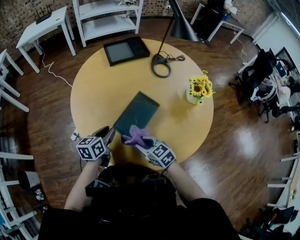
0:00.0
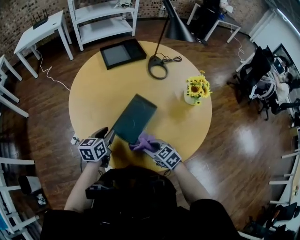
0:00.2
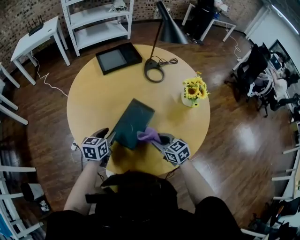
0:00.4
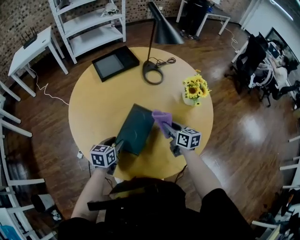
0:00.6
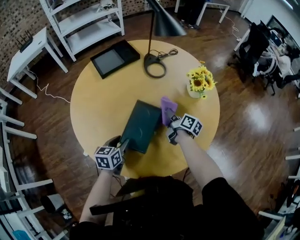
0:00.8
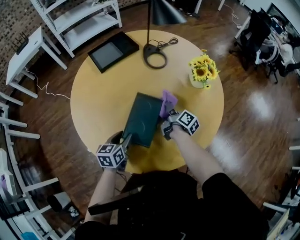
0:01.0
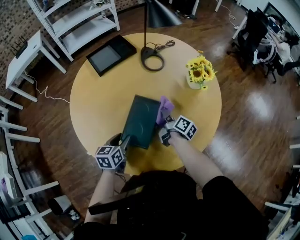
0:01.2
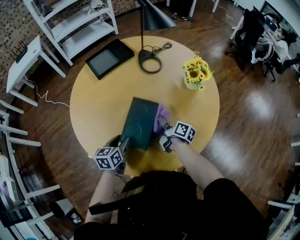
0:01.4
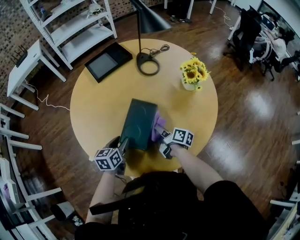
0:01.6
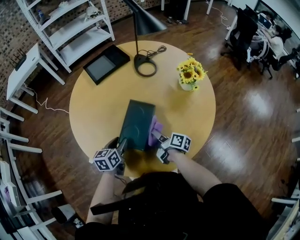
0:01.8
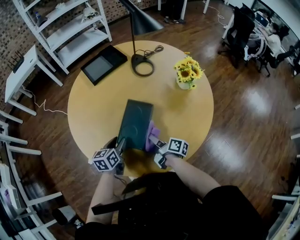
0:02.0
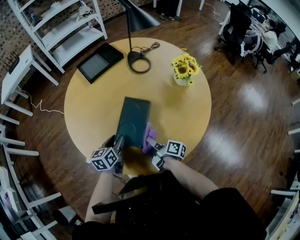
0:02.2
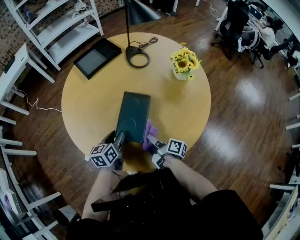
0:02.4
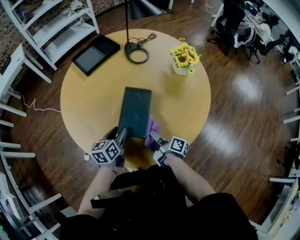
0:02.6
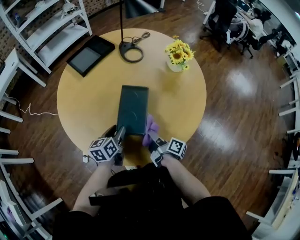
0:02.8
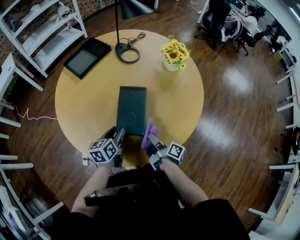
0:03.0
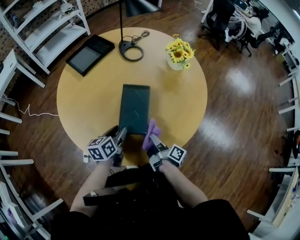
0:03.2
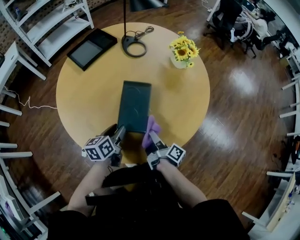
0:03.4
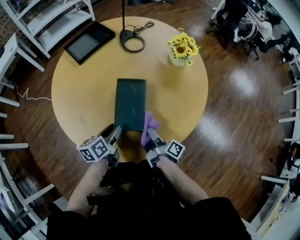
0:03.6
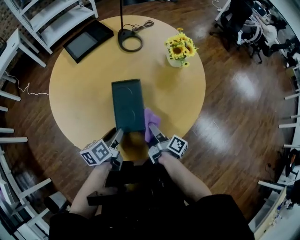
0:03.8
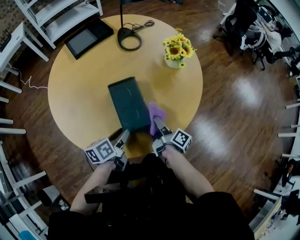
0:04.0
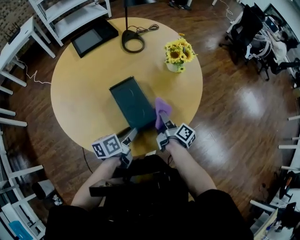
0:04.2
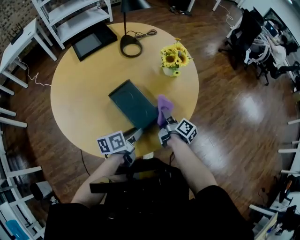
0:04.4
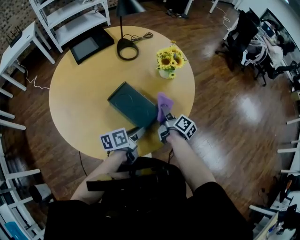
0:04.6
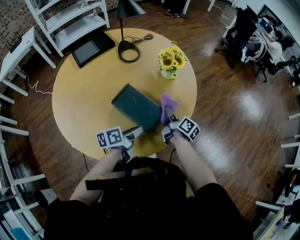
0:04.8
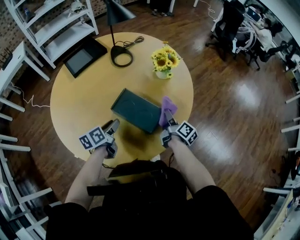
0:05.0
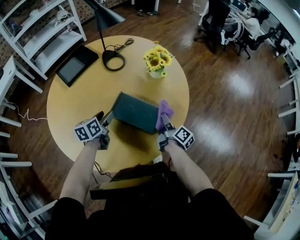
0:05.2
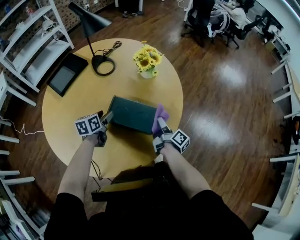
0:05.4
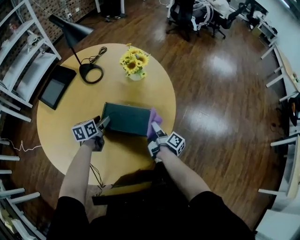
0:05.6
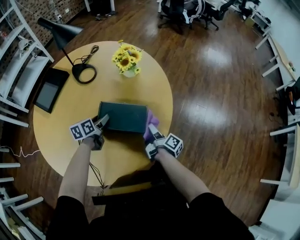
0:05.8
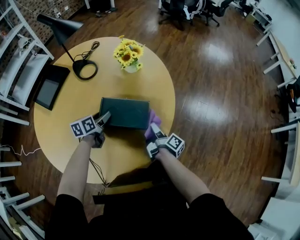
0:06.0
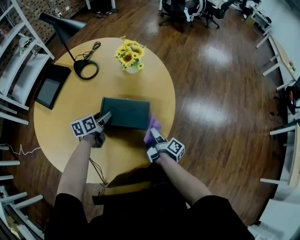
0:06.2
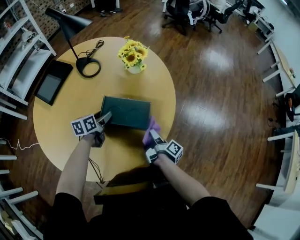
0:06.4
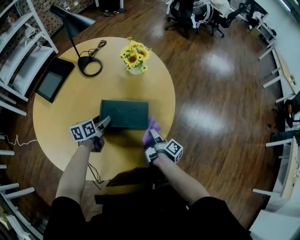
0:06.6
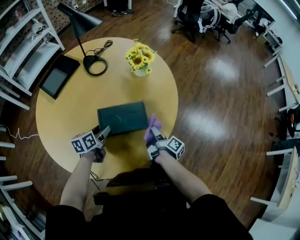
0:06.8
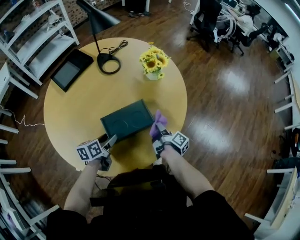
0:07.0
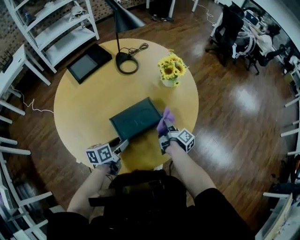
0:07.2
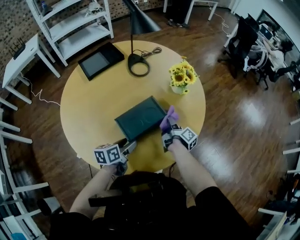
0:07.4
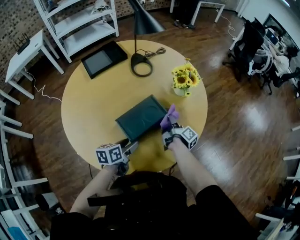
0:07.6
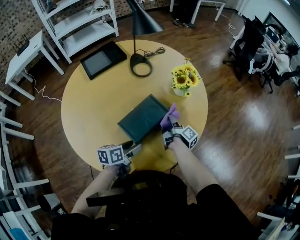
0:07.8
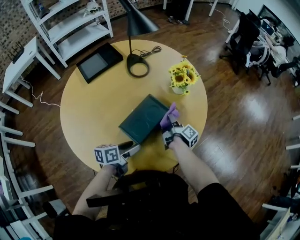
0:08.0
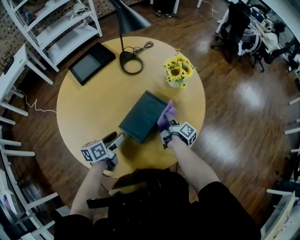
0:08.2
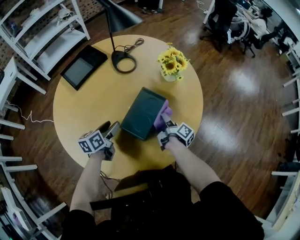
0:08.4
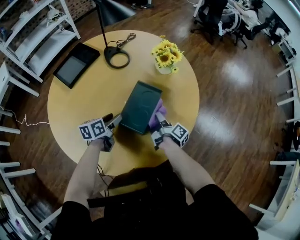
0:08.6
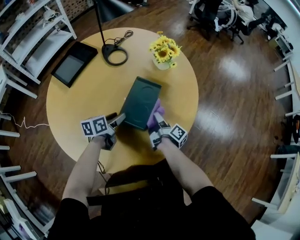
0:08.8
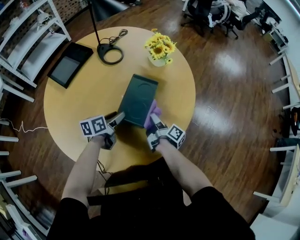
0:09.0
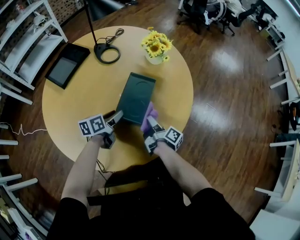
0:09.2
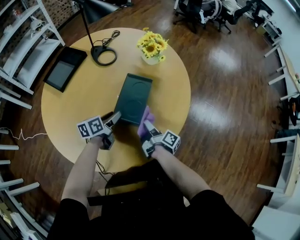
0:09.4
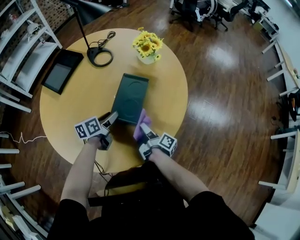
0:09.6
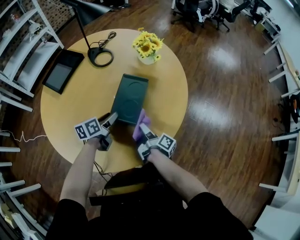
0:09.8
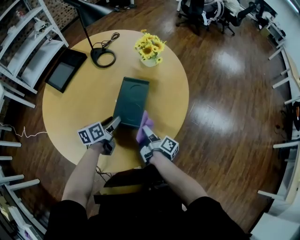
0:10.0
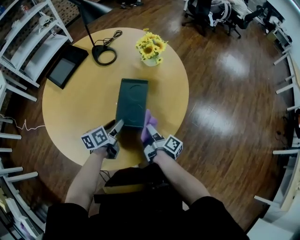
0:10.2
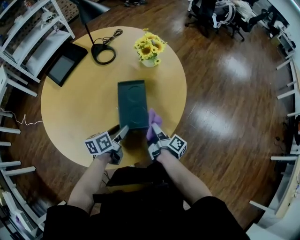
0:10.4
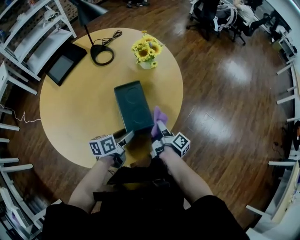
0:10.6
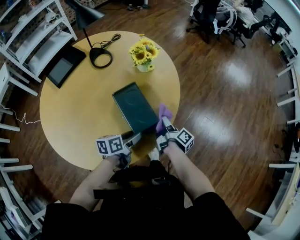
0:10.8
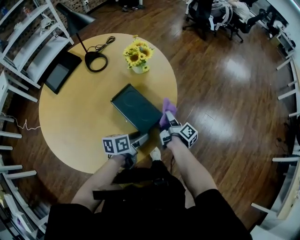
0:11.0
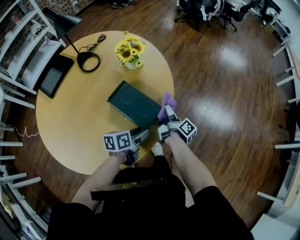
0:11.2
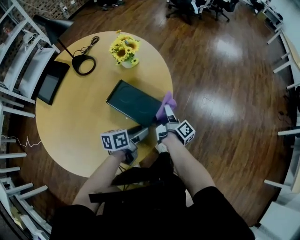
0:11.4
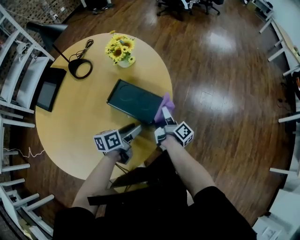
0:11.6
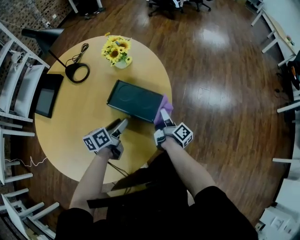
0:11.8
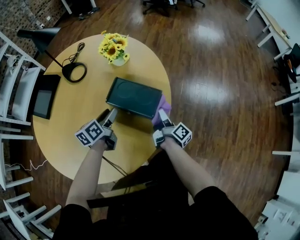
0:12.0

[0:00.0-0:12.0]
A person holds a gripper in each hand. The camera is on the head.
0:00.0 to 0:01.6: The left gripper changes place by about 5 cm, while the right gripper rolls clockwise, seen from behind, by about 70 degrees.
0:01.6 to 0:03.0: The right gripper is displaced backward by some 15 cm, and changes its angle by approximately 30 degrees.
0:03.0 to 0:04.4: The left gripper heads to the right, covering some 20 cm, and swivels some 30 degrees. Meanwhile the right gripper is displaced to the right and forward by approximately 25 cm, and swivels roughly 20 degrees.
0:04.4 to 0:06.0: The left gripper changes place by about 20 cm, turns by about 30 degrees, and opens its fingers; the right gripper moves approximately 10 cm, and swivels about 50 degrees.
0:06.0 to 0:07.6: The left gripper goes about 15 cm backward, and changes its angle by about 20 degrees, while the right gripper is displaced forward by some 15 cm, and turns by some 30 degrees.
0:07.6 to 0:09.0: The left gripper heads forward and to the left, covering roughly 10 cm, and changes its angle by some 20 degrees, while the right gripper travels backward and to the left by roughly 15 cm.
0:09.0 to 0:10.4: The right gripper shifts approximately 10 cm to the right. The left gripper moves to the right and backward, approximately 10 cm.
0:10.4 to 0:12.0: The right gripper swivels approximately 30 degrees.

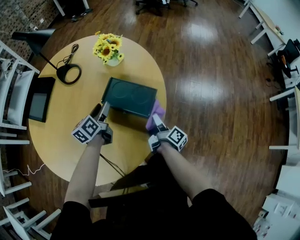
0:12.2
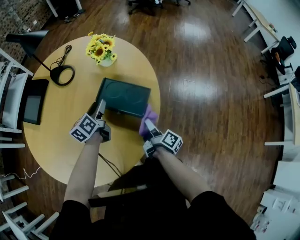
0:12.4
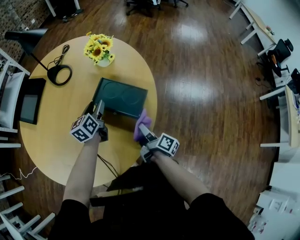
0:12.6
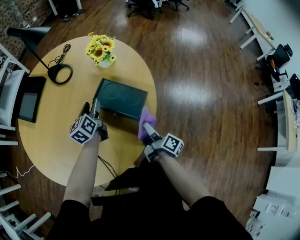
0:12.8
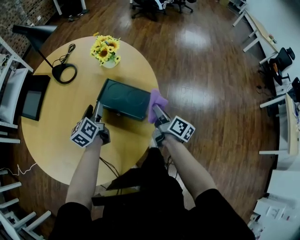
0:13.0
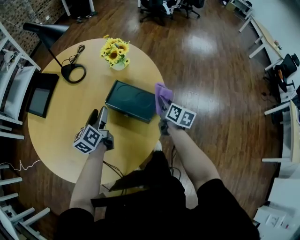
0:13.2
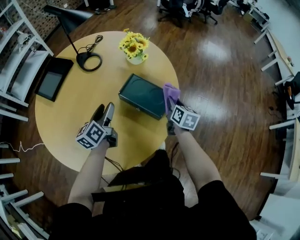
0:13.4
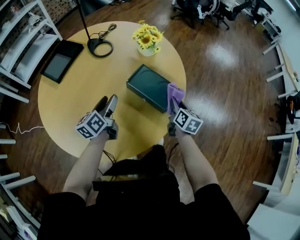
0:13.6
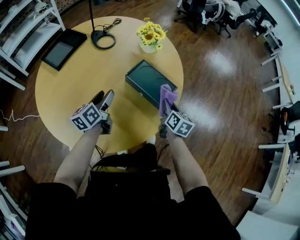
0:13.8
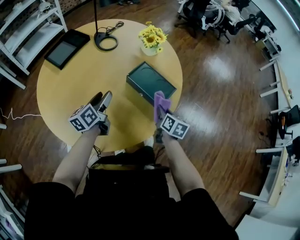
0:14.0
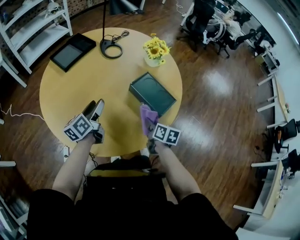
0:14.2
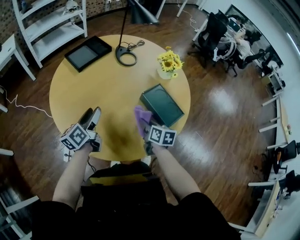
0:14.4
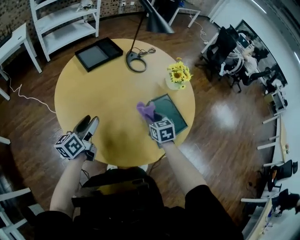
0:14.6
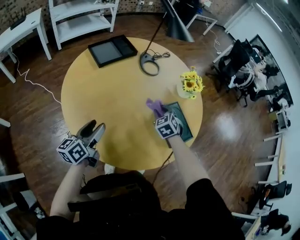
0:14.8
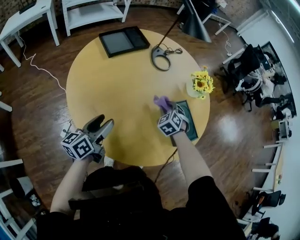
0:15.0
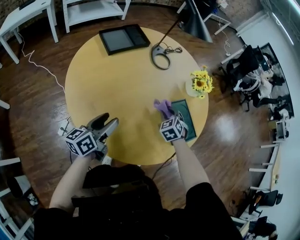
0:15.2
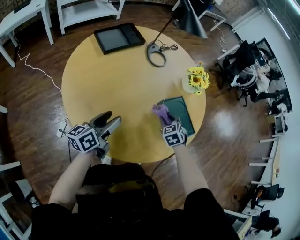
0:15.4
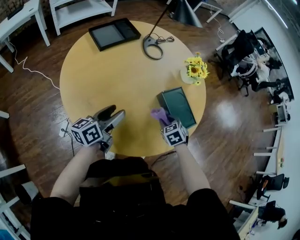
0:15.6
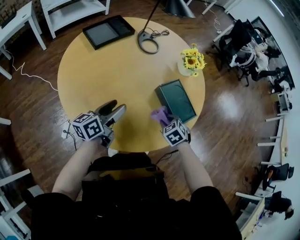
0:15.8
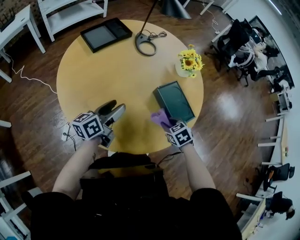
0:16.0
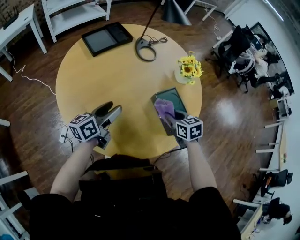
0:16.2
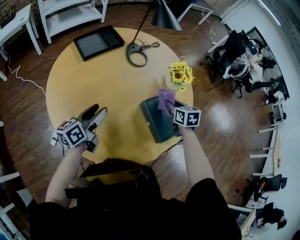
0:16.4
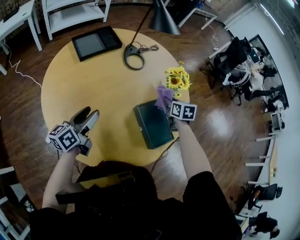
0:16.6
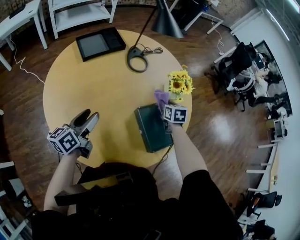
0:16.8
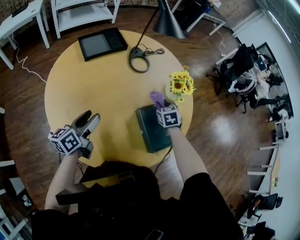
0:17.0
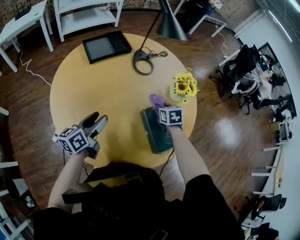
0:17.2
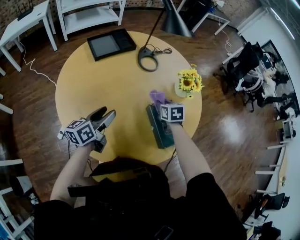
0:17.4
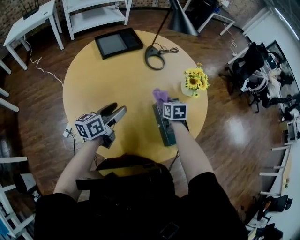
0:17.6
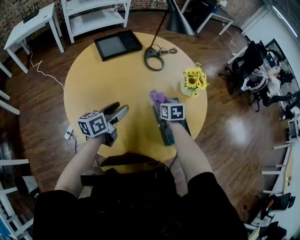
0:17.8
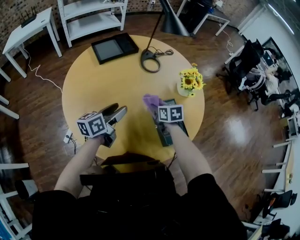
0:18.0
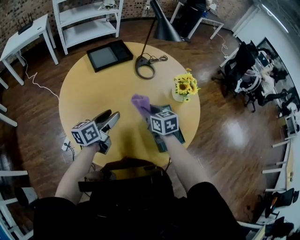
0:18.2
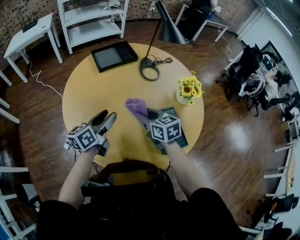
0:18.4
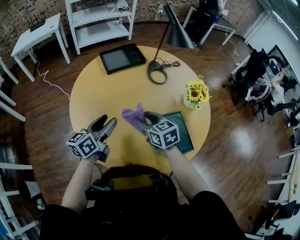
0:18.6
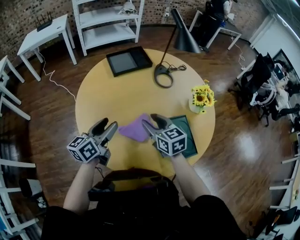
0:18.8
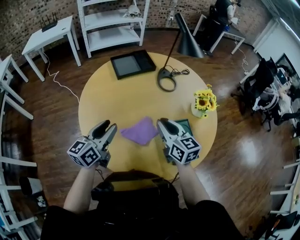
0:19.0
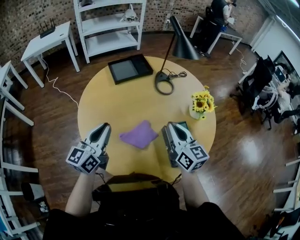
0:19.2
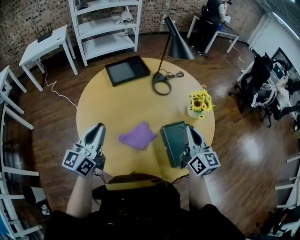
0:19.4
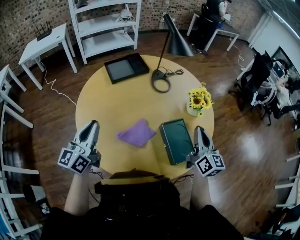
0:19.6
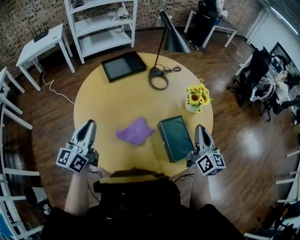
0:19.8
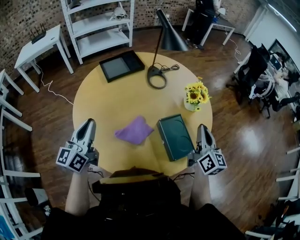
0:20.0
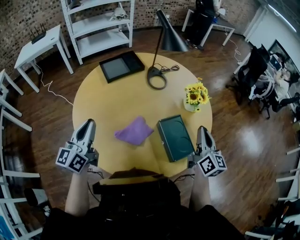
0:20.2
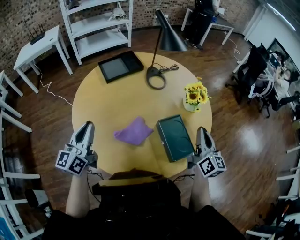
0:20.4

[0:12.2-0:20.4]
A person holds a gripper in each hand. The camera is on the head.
0:12.2 to 0:13.8: The right gripper shifts about 5 cm upward, goes forward and returns, some 10 cm each way, and rotates around the line of its fingers by approximately 60 degrees, counterclockwise from behind, while the left gripper travels backward and to the left by about 15 cm.
0:13.8 to 0:15.4: The left gripper travels to the left and backward by about 15 cm. Meanwhile the right gripper heads to the left and forward, covering approximately 20 cm, and rolls counterclockwise, seen from behind, by approximately 80 degrees.
0:15.4 to 0:17.2: The right gripper is displaced forward and to the right by some 15 cm, and changes its angle by roughly 30 degrees, while the left gripper shifts by roughly 5 cm.
0:17.2 to 0:18.8: The left gripper is displaced upward by roughly 5 cm. Meanwhile the right gripper moves to the left, upward and backward, approximately 25 cm, and turns by about 30 degrees.
0:18.8 to 0:20.4: The left gripper moves upward, about 5 cm, rotates some 20 degrees, and closes, while the right gripper shifts about 25 cm to the right, changes its angle by some 50 degrees, and closes its fingers.

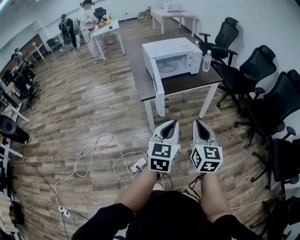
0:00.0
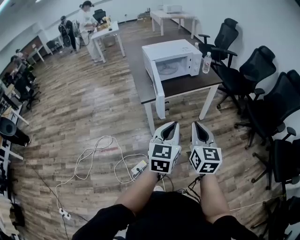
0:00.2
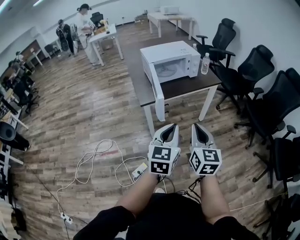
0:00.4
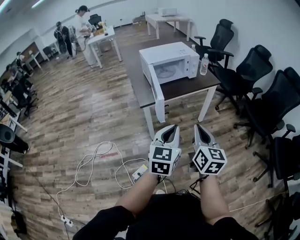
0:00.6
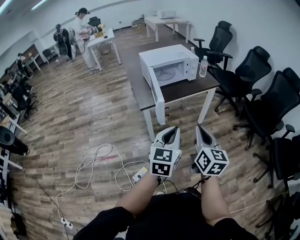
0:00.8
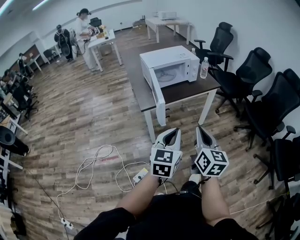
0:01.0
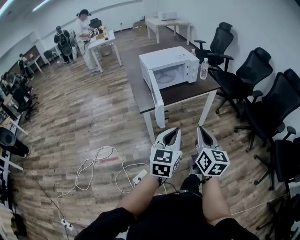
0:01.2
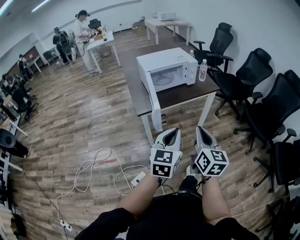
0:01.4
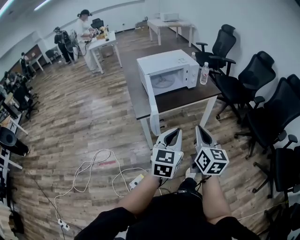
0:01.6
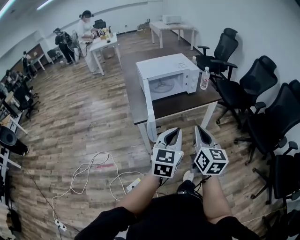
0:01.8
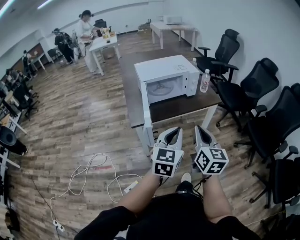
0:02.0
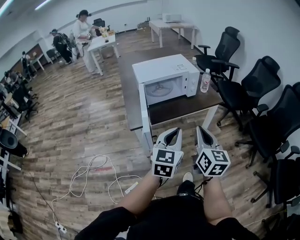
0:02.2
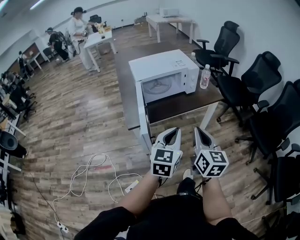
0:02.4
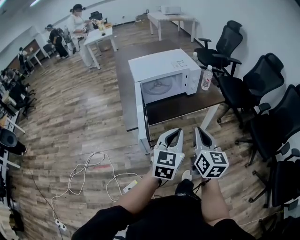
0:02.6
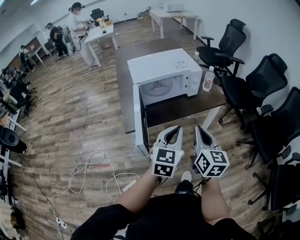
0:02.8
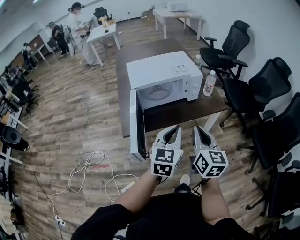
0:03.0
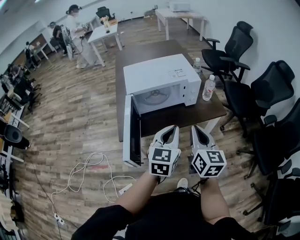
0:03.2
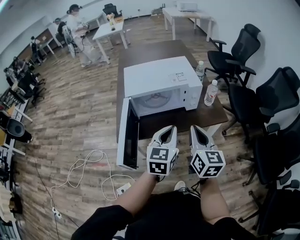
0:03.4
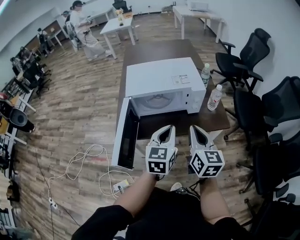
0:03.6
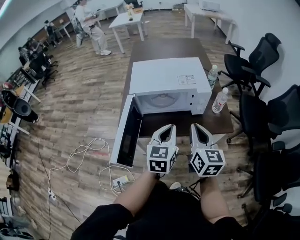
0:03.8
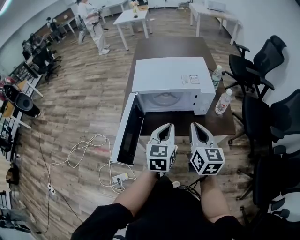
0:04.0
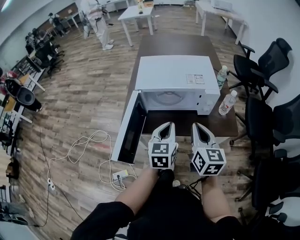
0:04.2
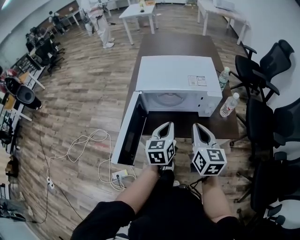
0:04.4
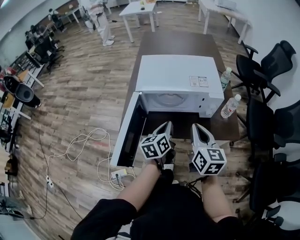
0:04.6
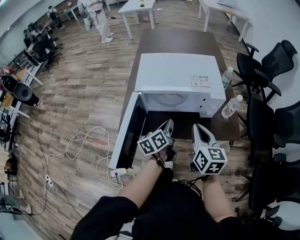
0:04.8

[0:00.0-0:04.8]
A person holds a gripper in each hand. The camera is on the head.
0:00.0 to 0:01.6: Both grippers travel together forward, about 10 cm.
0:01.6 to 0:03.2: Both grippers move forward, some 30 cm.
0:03.2 to 0:04.8: The left gripper goes some 25 cm forward and downward, and rotates around the line of its fingers by some 50 degrees, counterclockwise from behind. The right gripper moves forward, roughly 15 cm.
